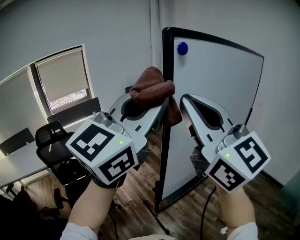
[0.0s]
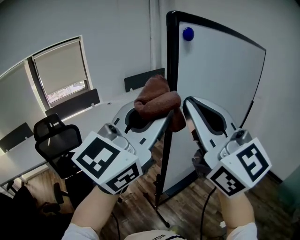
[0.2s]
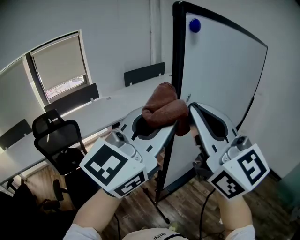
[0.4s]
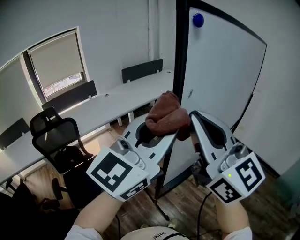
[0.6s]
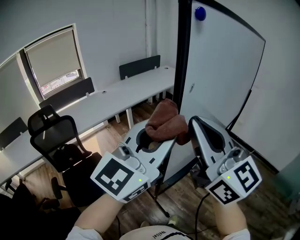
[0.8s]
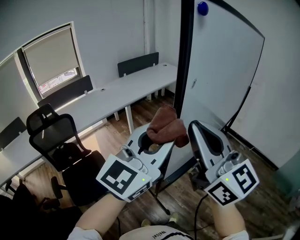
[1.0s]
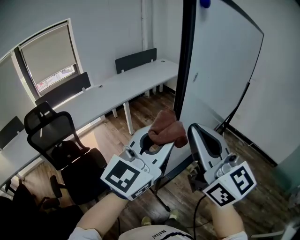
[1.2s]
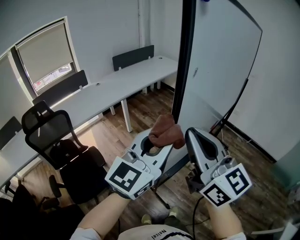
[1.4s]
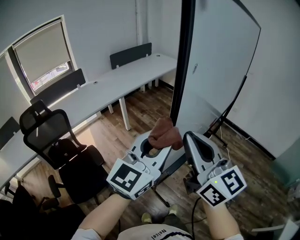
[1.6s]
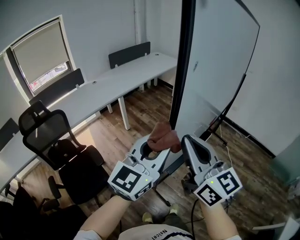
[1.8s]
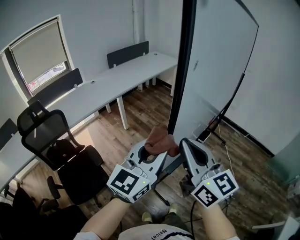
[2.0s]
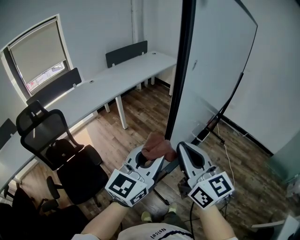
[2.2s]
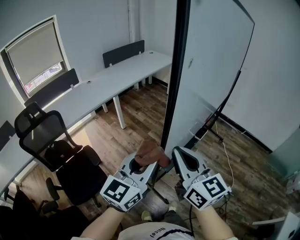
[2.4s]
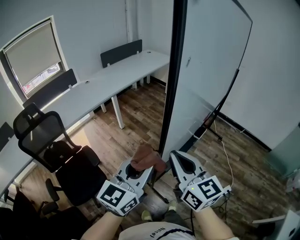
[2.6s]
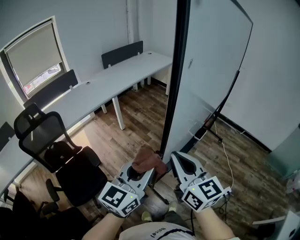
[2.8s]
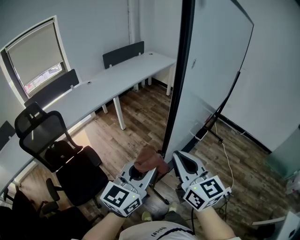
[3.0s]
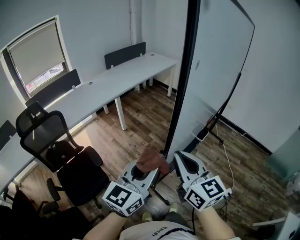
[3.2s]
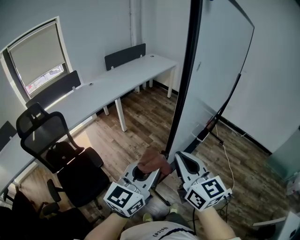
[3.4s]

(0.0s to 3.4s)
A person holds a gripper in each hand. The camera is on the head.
0.0s - 1.6s: The two grippers go about 25 cm downward. The right gripper changes its angle by approximately 20 degrees.
1.6s - 3.4s: The left gripper goes about 10 cm downward and backward. The right gripper heads downward, covering some 10 cm.

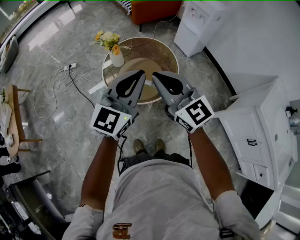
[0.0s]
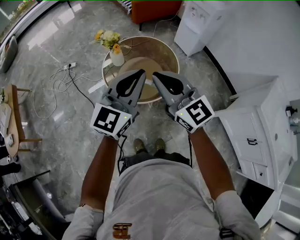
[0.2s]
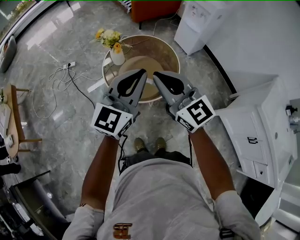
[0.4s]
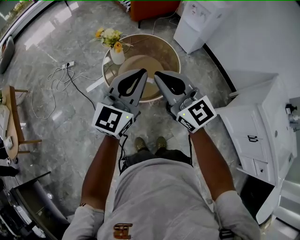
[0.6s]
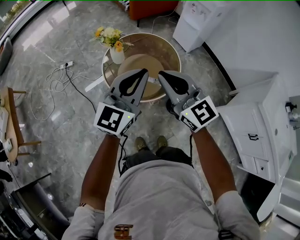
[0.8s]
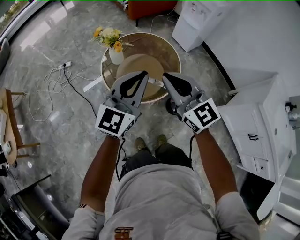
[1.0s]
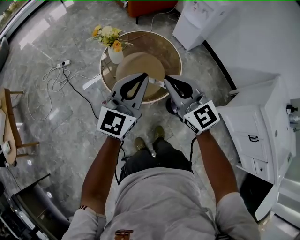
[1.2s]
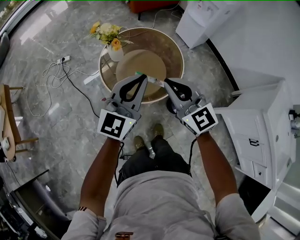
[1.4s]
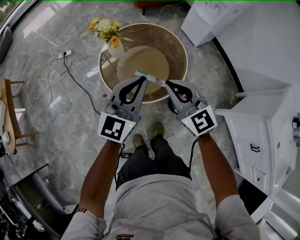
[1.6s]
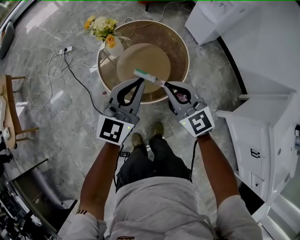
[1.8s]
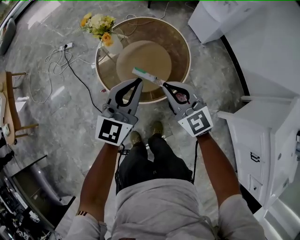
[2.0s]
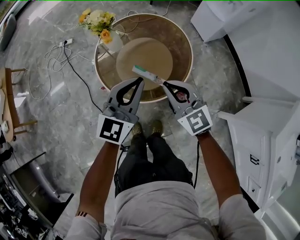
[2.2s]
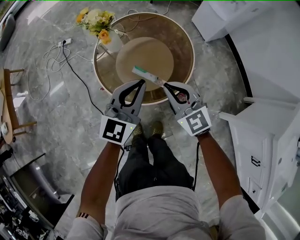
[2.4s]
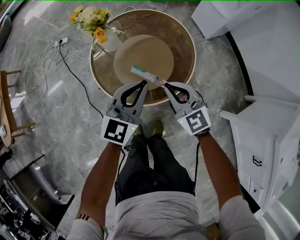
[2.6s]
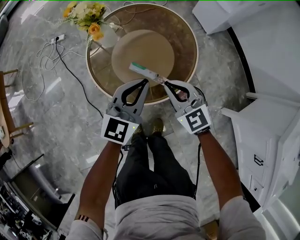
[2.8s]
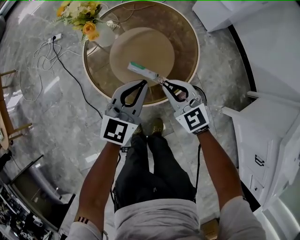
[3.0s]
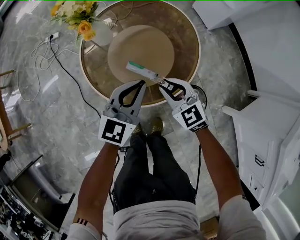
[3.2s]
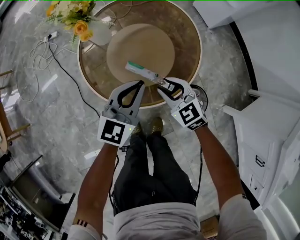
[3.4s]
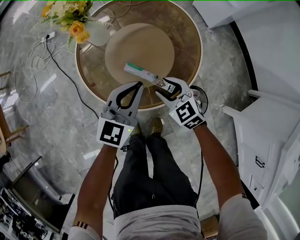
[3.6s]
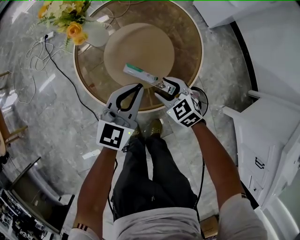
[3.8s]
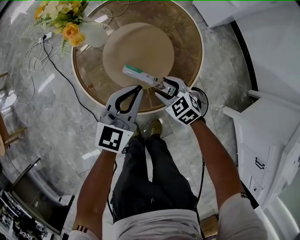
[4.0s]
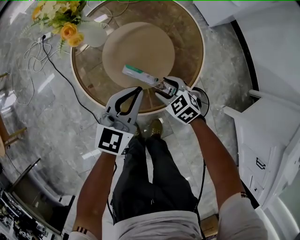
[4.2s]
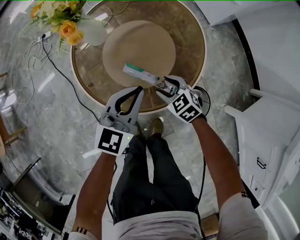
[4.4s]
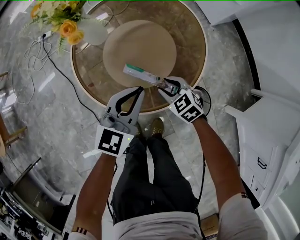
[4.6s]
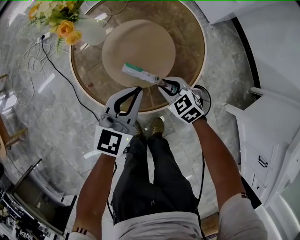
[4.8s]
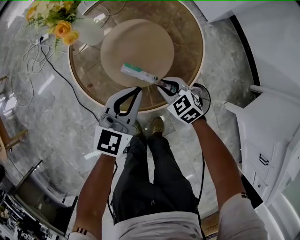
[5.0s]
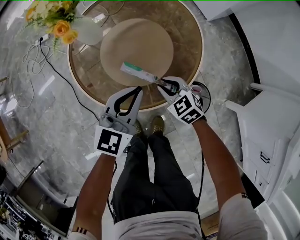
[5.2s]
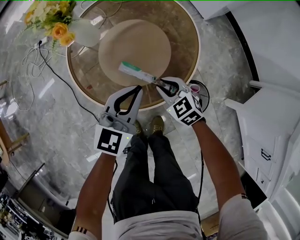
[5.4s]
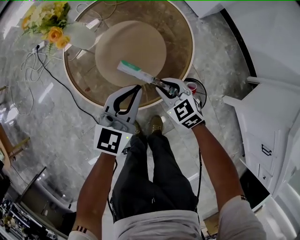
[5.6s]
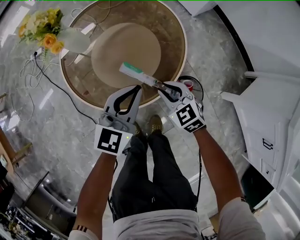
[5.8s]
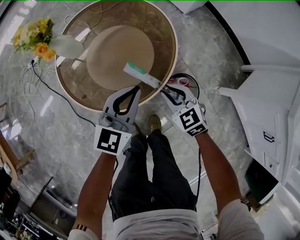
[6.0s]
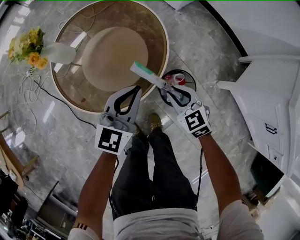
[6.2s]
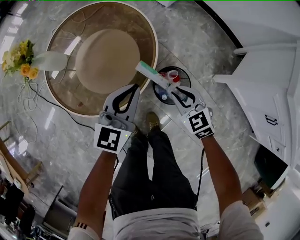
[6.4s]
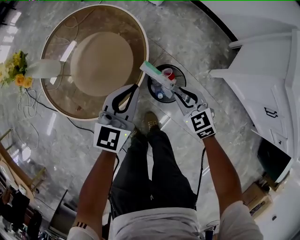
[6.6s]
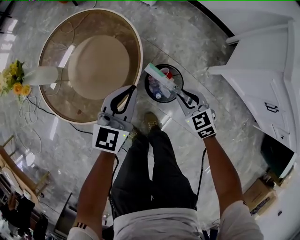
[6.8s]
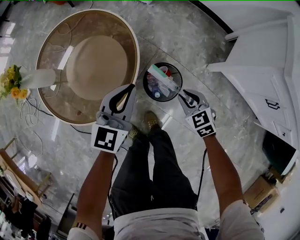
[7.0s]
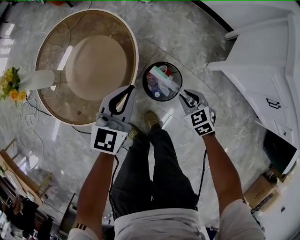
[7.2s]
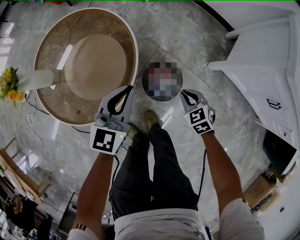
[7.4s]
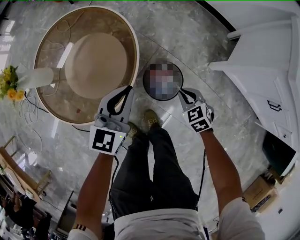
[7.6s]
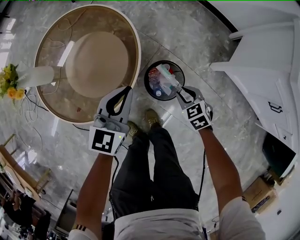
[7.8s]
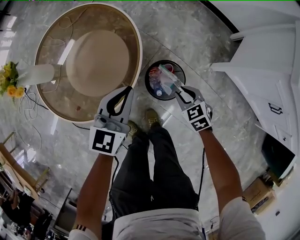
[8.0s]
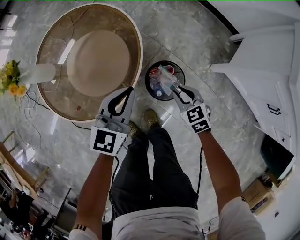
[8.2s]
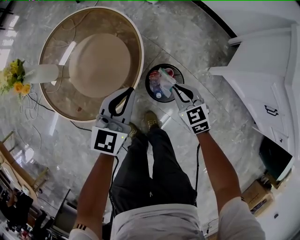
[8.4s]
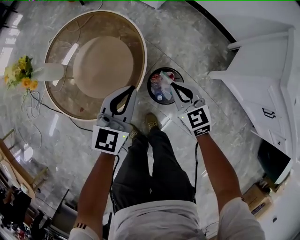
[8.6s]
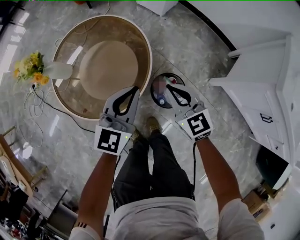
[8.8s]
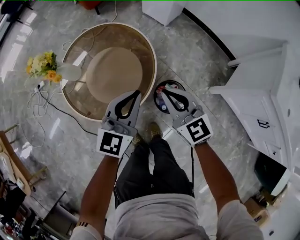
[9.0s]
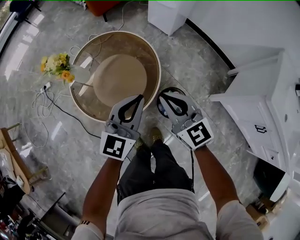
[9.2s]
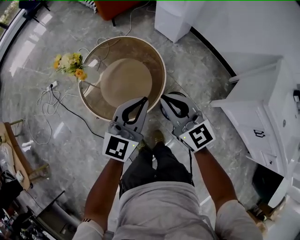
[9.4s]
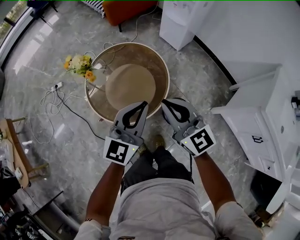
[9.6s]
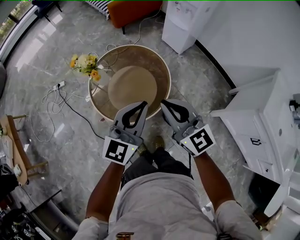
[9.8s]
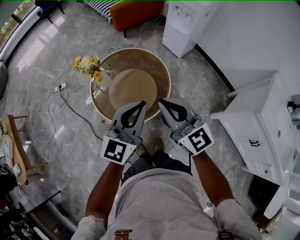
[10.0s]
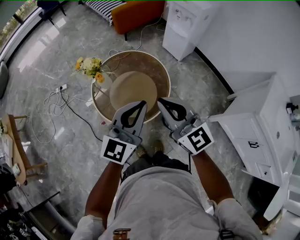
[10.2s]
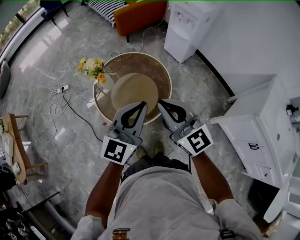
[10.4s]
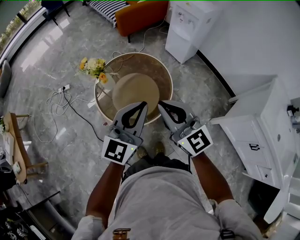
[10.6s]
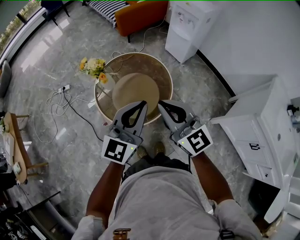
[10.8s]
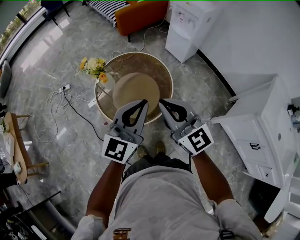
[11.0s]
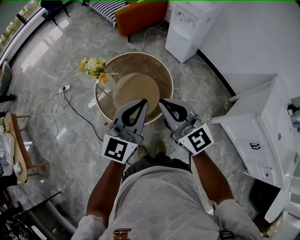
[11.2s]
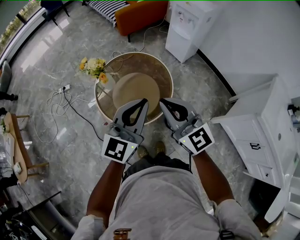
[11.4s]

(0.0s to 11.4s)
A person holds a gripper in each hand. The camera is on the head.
0.0s - 1.4s: Both grippers travel together downward and forward, roughly 10 cm.
1.4s - 2.8s: Both grippers move downward, roughly 25 cm.
2.8s - 4.2s: The left gripper travels downward by roughly 10 cm. Meanwhile the right gripper is displaced downward by roughly 20 cm, rotates roughly 30 degrees, and opens.
4.2s - 5.6s: The right gripper moves upward, roughly 5 cm, and closes up.
5.6s - 7.2s: The right gripper ends up approximately 30 cm from where it was, and turns by some 40 degrees; the left gripper changes place by some 20 cm.
7.2s - 8.6s: The right gripper travels upward, to the left and forward by approximately 15 cm, turns by approximately 20 degrees, and closes its fingers. The left gripper ends up roughly 5 cm from where it was.
8.6s - 10.0s: The two grippers go roughly 35 cm upward and to the left. The right gripper angles its fingers upward, by approximately 30 degrees.
10.0s - 11.4s: The grippers stay close to where they were, moving slightly.

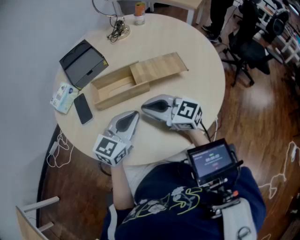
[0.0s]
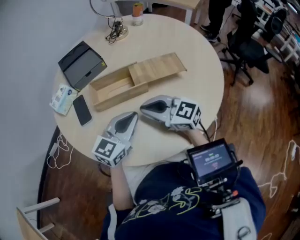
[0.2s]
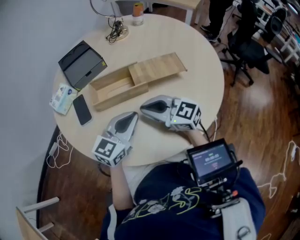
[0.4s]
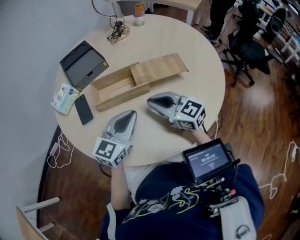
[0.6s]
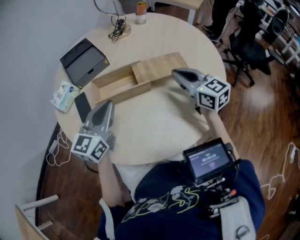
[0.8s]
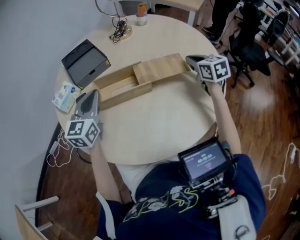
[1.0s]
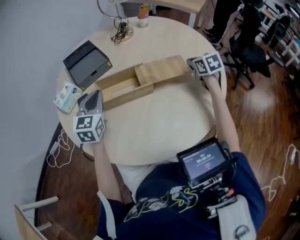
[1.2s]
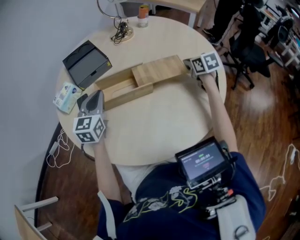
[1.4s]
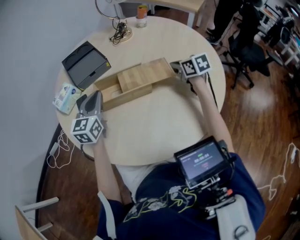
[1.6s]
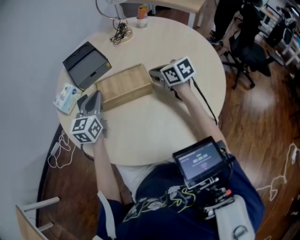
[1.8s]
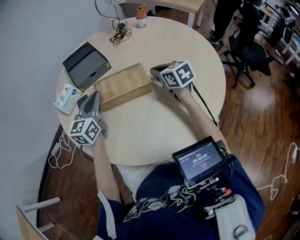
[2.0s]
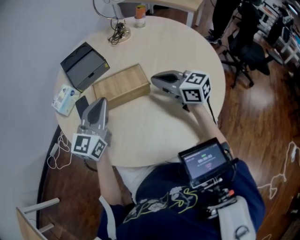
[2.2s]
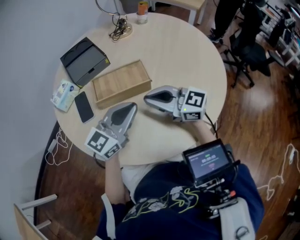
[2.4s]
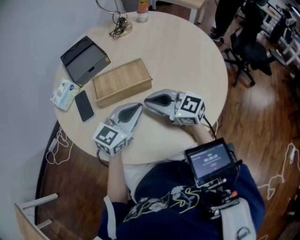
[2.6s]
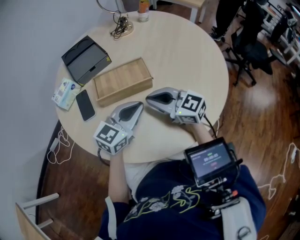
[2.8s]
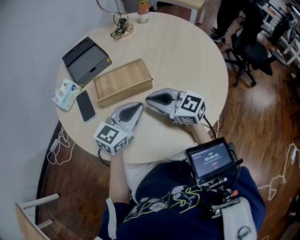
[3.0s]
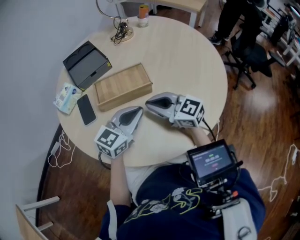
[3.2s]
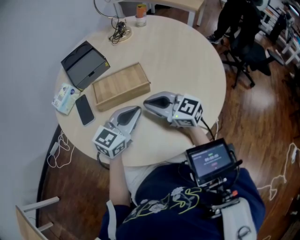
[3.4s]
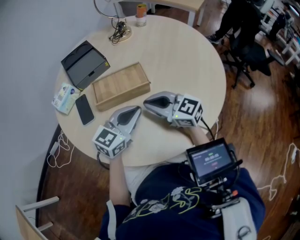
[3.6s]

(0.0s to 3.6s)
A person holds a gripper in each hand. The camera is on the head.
0.0s - 1.8s: The right gripper shifts roughly 15 cm forward, goes to the right and returns, roughly 25 cm each way, and turns by some 40 degrees. The left gripper shifts some 20 cm to the left and forward, and turns by roughly 30 degrees.
1.8s - 3.6s: The left gripper travels to the right and backward by some 20 cm, and rotates approximately 30 degrees. The right gripper moves backward and to the left, some 15 cm, and rotates about 30 degrees.

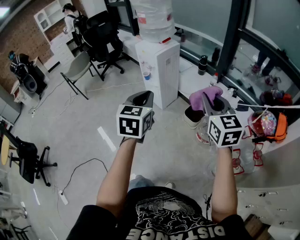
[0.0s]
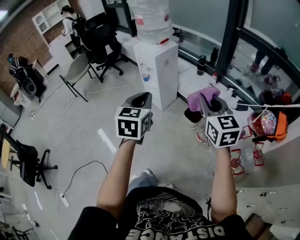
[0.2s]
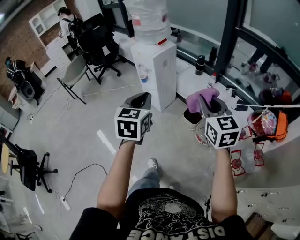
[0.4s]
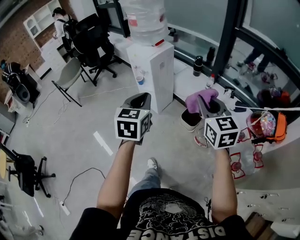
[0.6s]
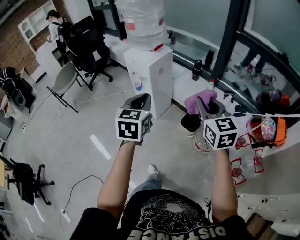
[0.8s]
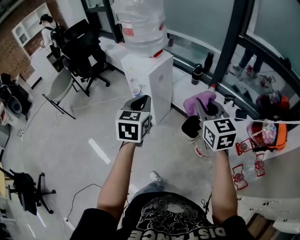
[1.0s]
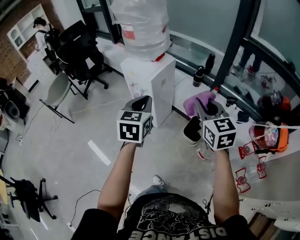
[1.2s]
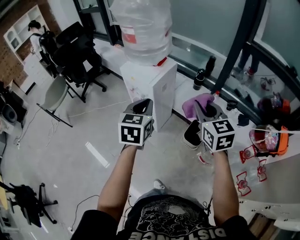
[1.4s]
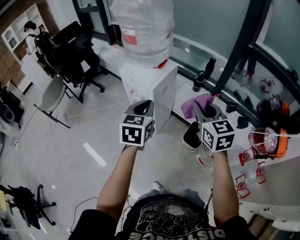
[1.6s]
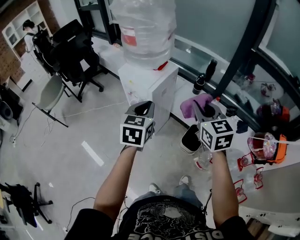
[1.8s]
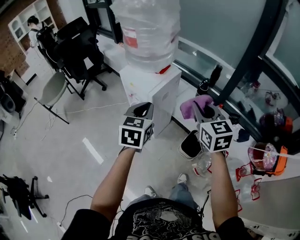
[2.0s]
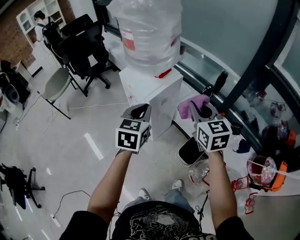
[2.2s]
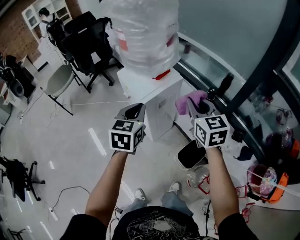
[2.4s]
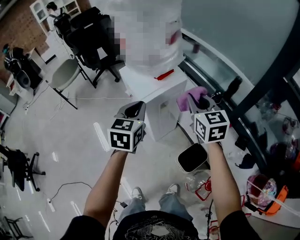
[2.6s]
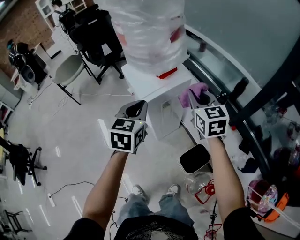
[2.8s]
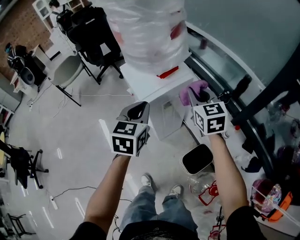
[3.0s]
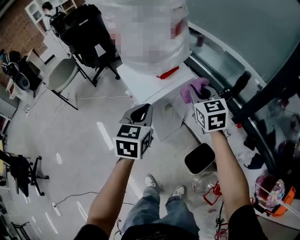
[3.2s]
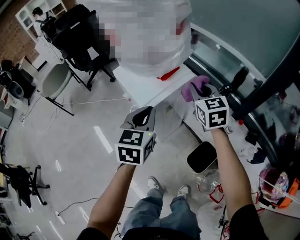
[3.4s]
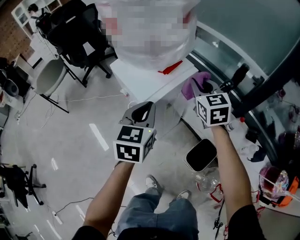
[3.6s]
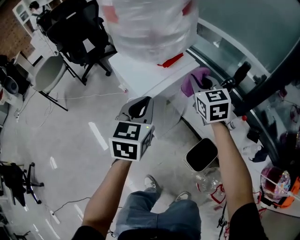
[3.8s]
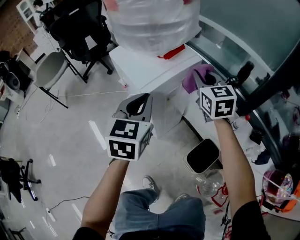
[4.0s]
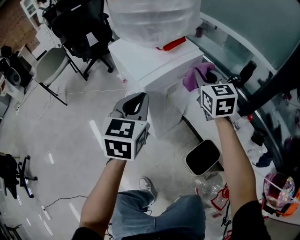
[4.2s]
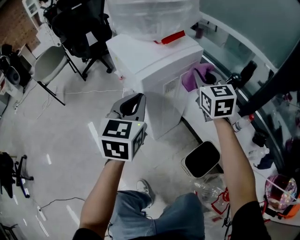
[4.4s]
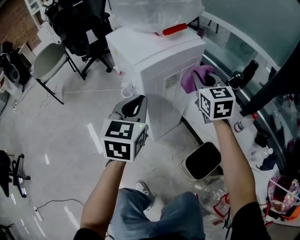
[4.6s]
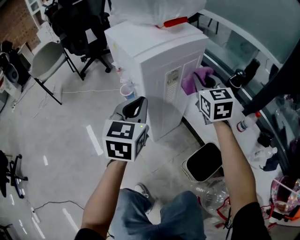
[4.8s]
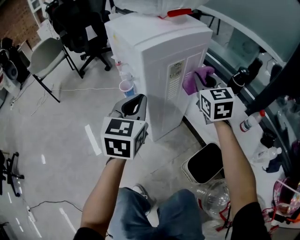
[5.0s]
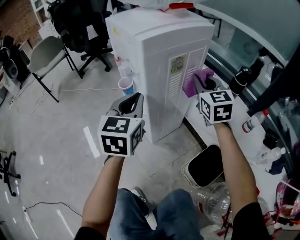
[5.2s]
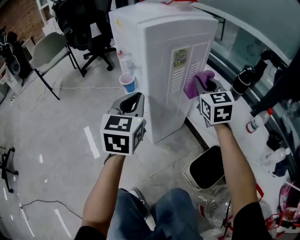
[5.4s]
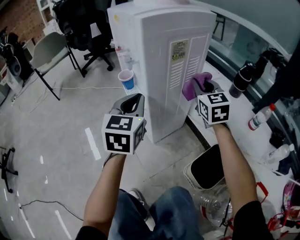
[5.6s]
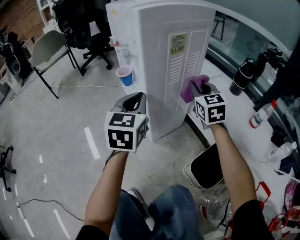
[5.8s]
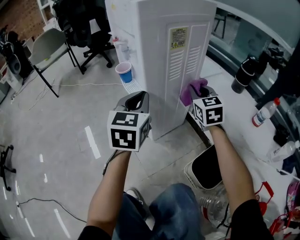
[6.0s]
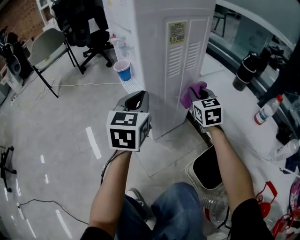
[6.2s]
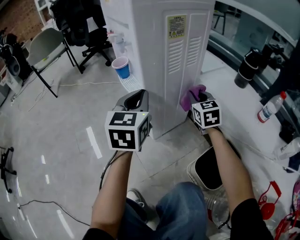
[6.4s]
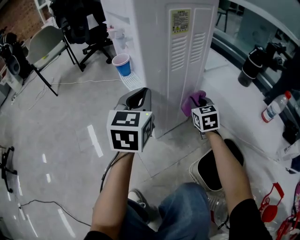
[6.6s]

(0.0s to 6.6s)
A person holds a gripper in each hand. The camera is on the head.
0.0s - 1.6s: Both grippers travel together forward, roughly 30 cm.
1.6s - 3.2s: The left gripper heads forward and downward, covering approximately 15 cm; the right gripper shifts approximately 30 cm forward and downward.
3.2s - 5.0s: Both grippers move downward, some 20 cm.
5.0s - 6.6s: The right gripper heads downward, covering roughly 30 cm. The left gripper travels downward by roughly 15 cm.
